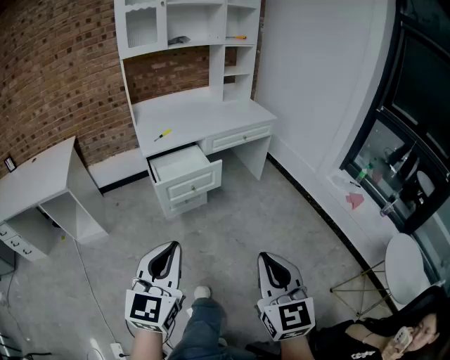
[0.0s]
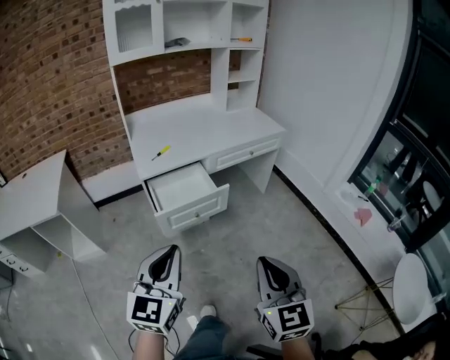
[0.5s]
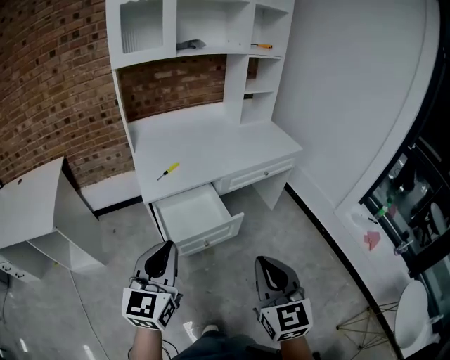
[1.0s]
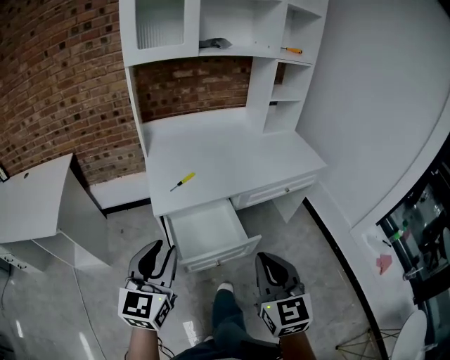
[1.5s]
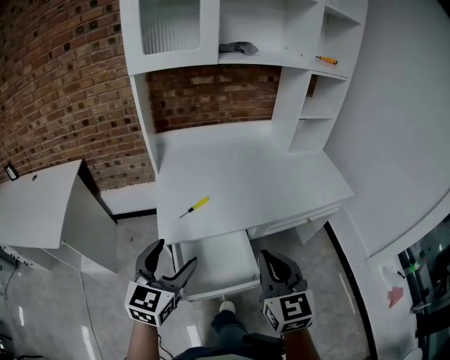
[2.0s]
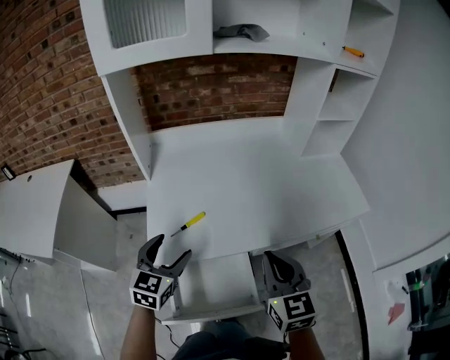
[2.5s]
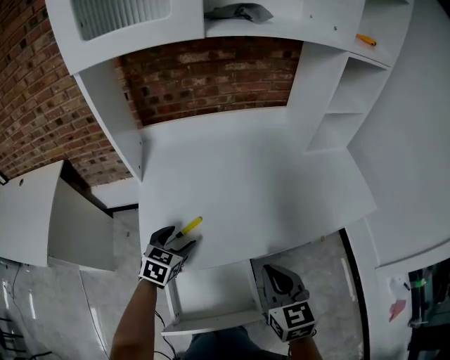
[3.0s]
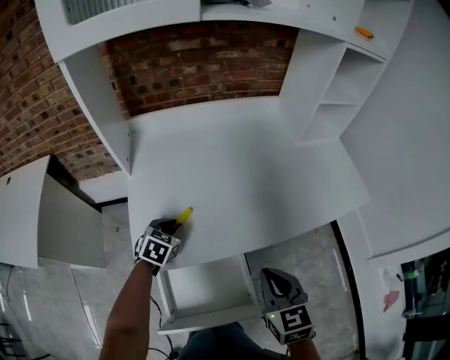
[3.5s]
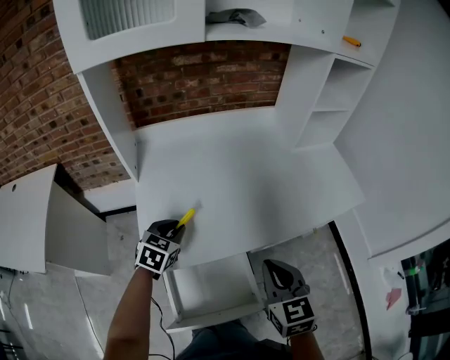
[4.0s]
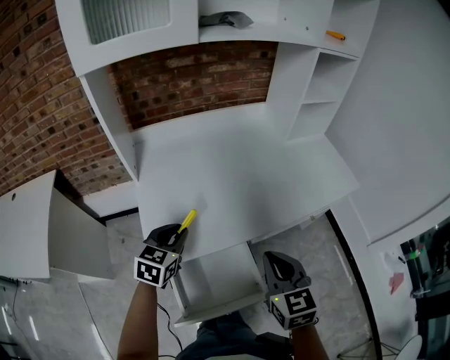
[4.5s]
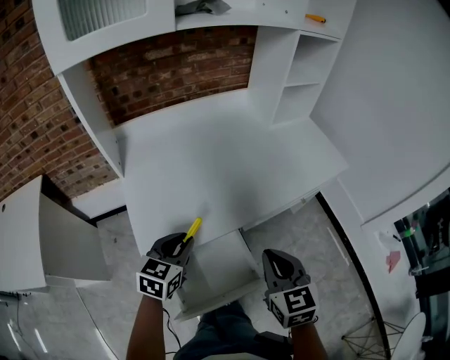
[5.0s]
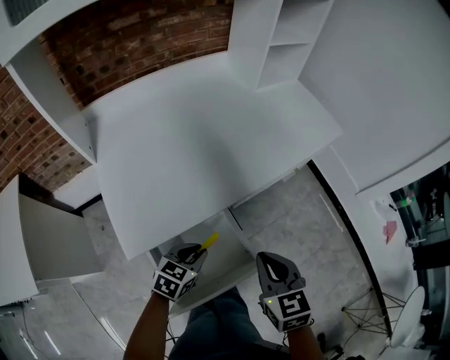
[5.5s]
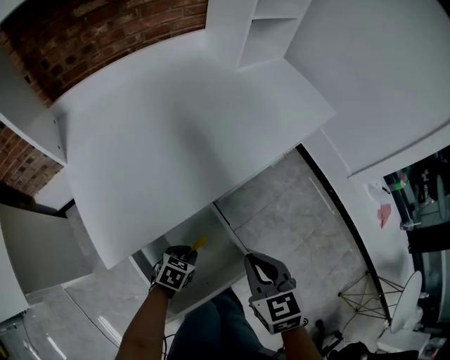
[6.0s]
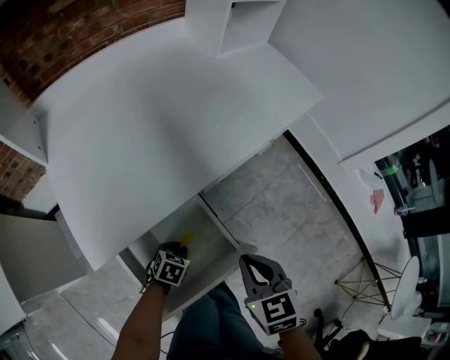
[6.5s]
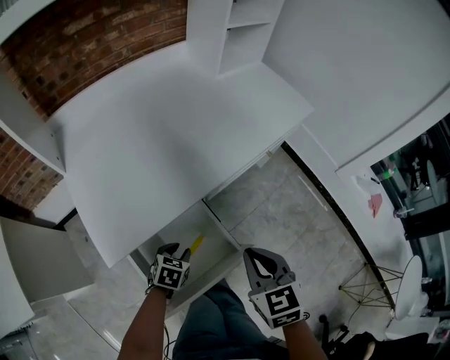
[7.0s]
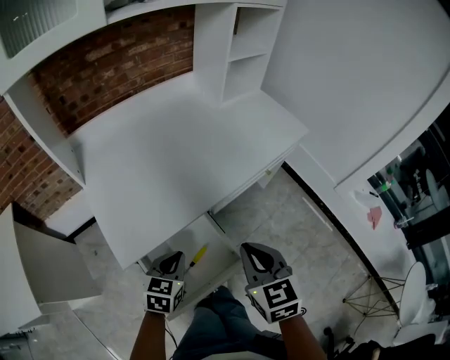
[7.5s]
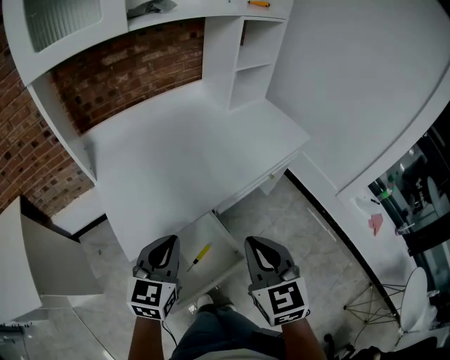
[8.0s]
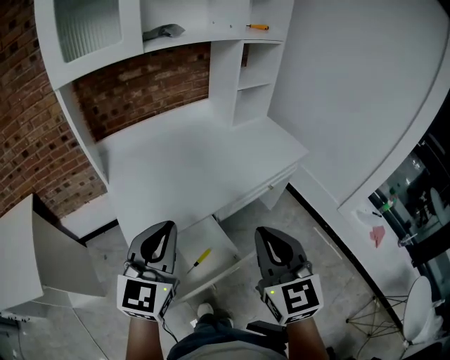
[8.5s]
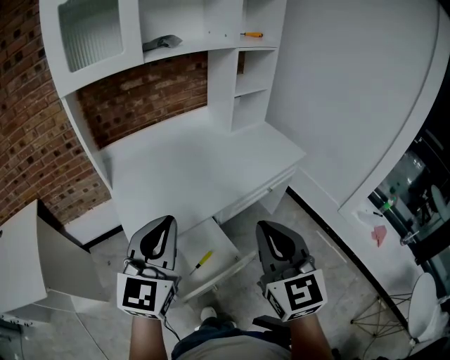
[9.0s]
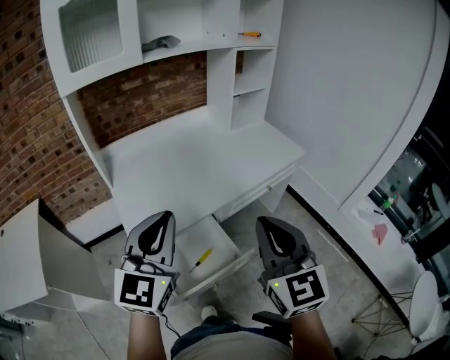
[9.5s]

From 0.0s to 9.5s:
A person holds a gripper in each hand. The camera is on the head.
From 0.0s to 2.0s: The two grippers travel together, forward, about 60 cm. The left gripper opens up.
From 2.0s to 4.0s: The right gripper heads forward and downward, covering approximately 15 cm, while the left gripper travels forward and downward by some 30 cm, rotates some 30 degrees, and closes its fingers.
From 4.0s to 5.5s: The left gripper goes some 25 cm to the right, backward and downward, and rotates roughly 30 degrees. The right gripper heads backward and downward, covering roughly 10 cm.
From 5.5s to 7.5s: The left gripper reaches roughly 20 cm downward, then returns. The right gripper heads upward, covering about 5 cm.
From 7.5s to 9.5s: The left gripper shifts some 30 cm upward, and angles its fingers upward, by some 40 degrees; the right gripper moves upward and backward, some 20 cm, and turns by roughly 30 degrees.

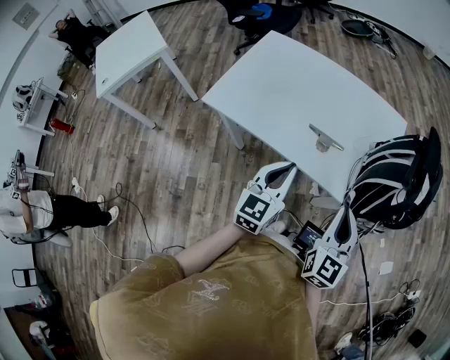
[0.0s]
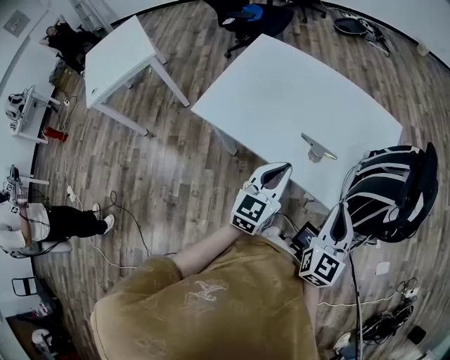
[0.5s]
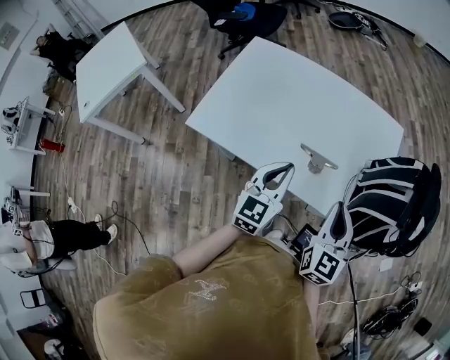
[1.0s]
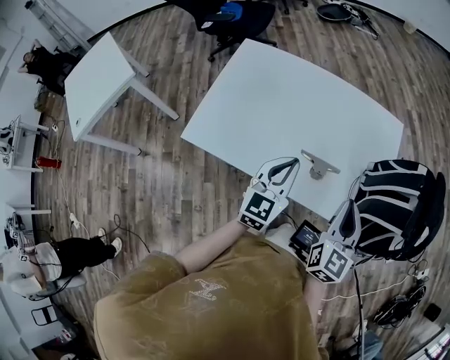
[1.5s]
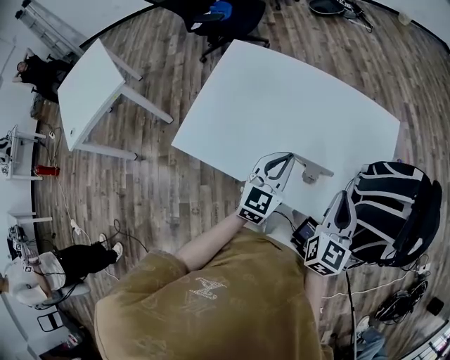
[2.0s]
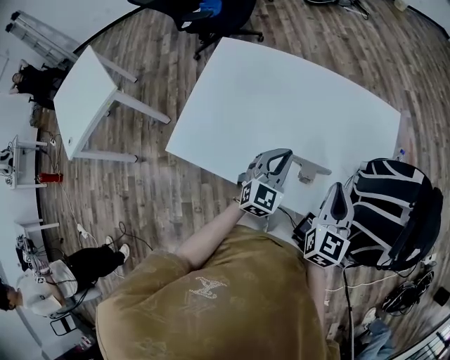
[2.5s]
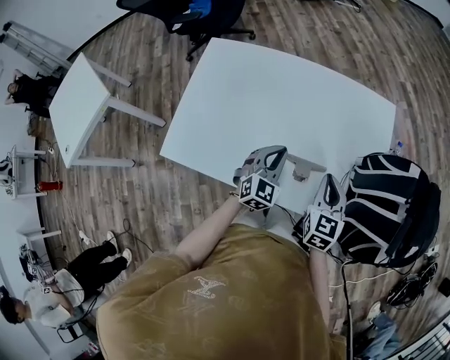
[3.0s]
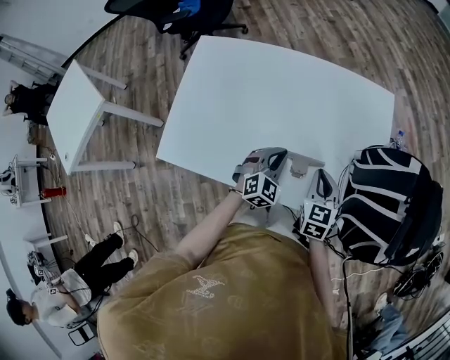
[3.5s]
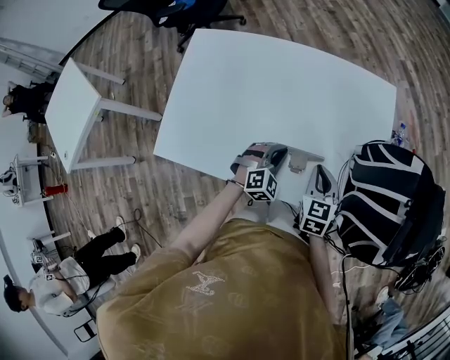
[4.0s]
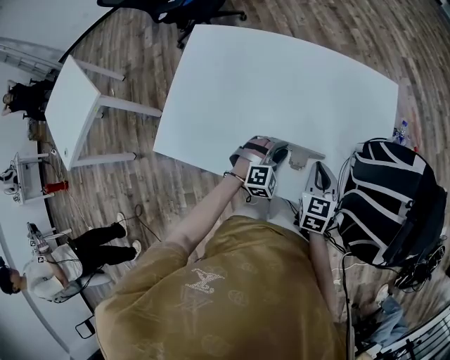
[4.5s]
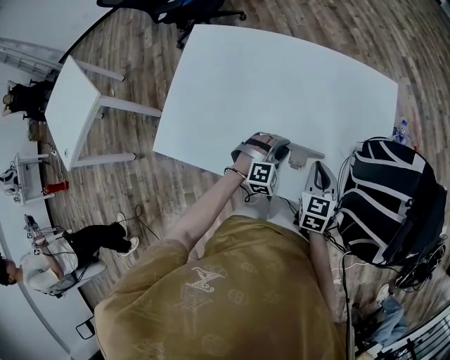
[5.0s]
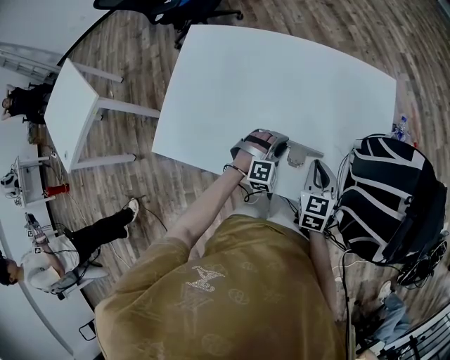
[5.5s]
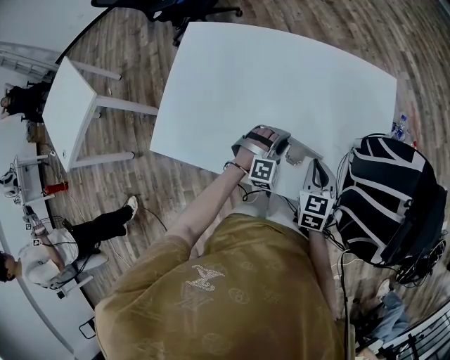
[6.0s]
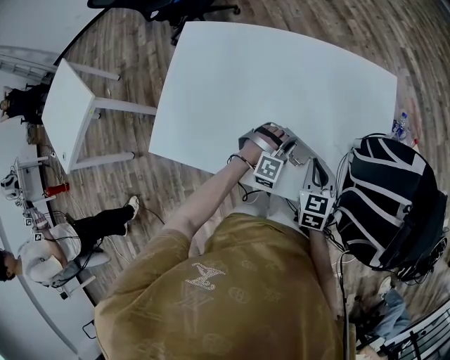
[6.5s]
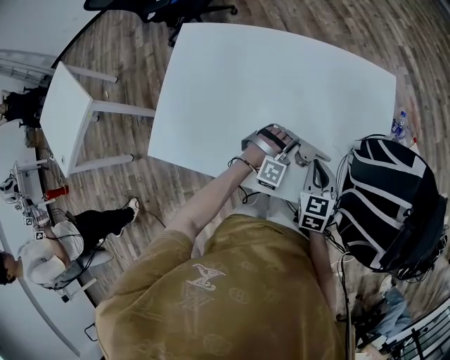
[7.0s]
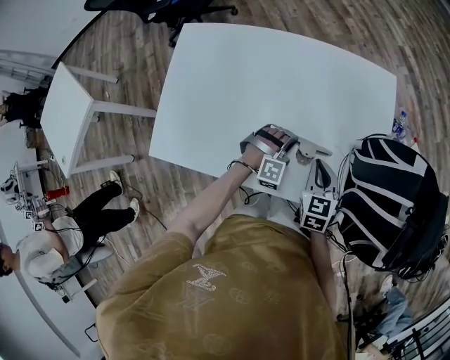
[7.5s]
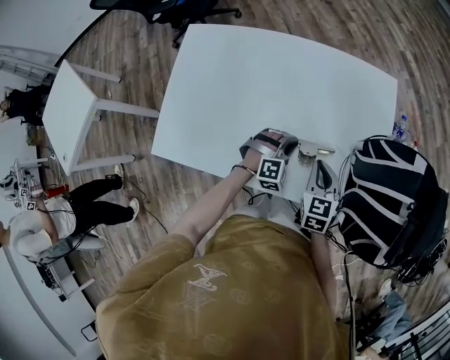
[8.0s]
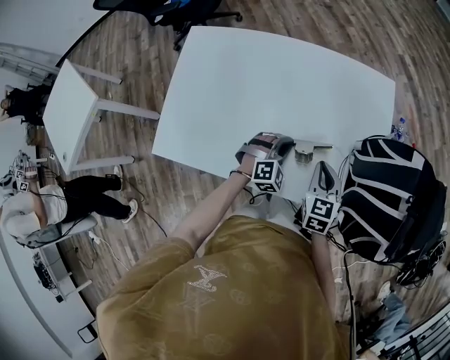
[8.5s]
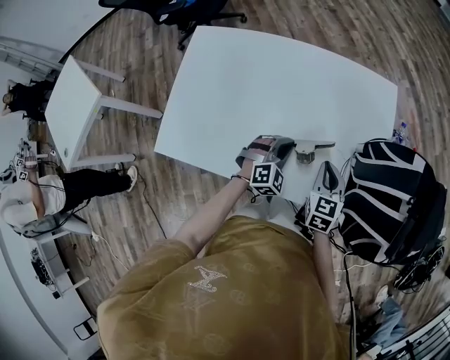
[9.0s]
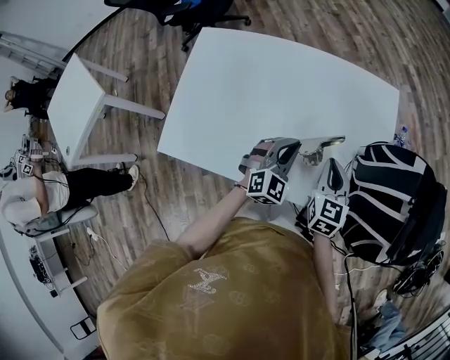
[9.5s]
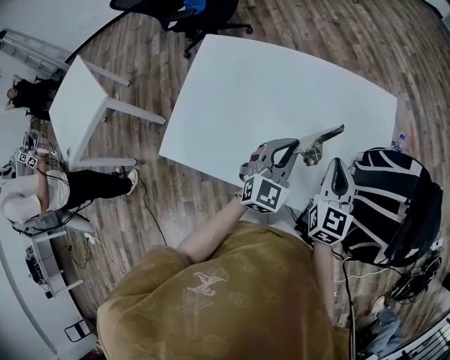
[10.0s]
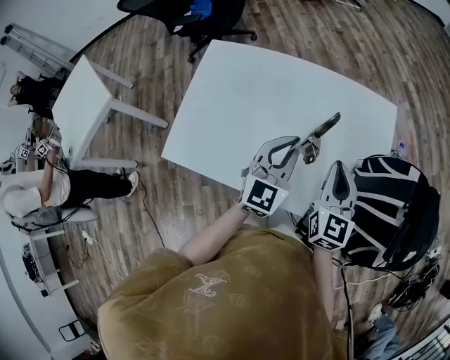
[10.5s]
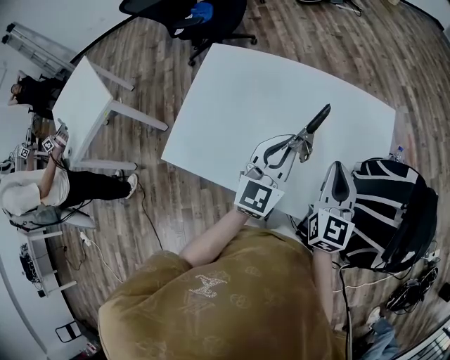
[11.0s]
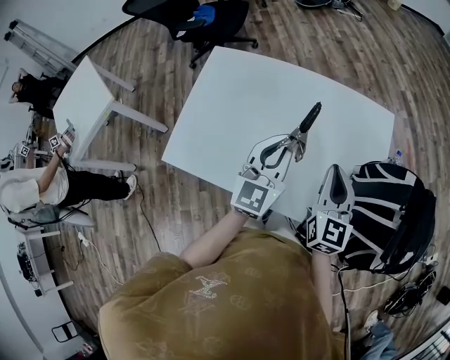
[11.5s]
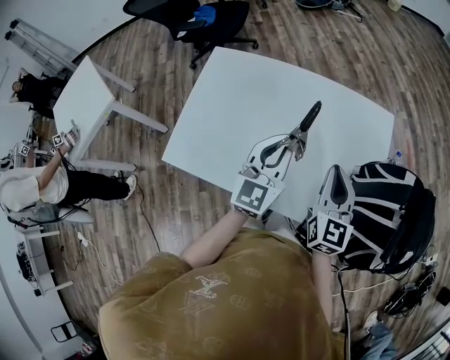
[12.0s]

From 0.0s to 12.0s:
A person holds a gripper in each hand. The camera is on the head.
From 0.0s to 2.0s: Both grippers travel together forward, roughly 20 cm.
From 2.0s to 4.0s: Both grippers travel together downward, some 20 cm. The right gripper rotates some 20 degrees. Meanwhile the left gripper changes its angle by about 50 degrees.
From 4.0s to 6.0s: The left gripper turns by roughly 20 degrees.
From 6.0s to 8.0s: The grippers make only small movements.
From 8.0s to 10.0s: The grippers both shift upward by approximately 15 cm. The left gripper swivels approximately 50 degrees. Meanwhile the right gripper swivels roughly 20 degrees.
From 10.0s to 12.0s: The left gripper travels upward by some 10 cm, and rotates some 30 degrees. The right gripper changes place by approximately 5 cm.

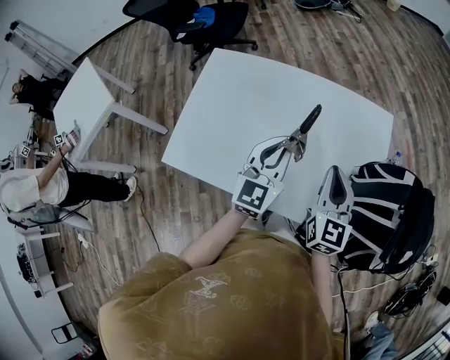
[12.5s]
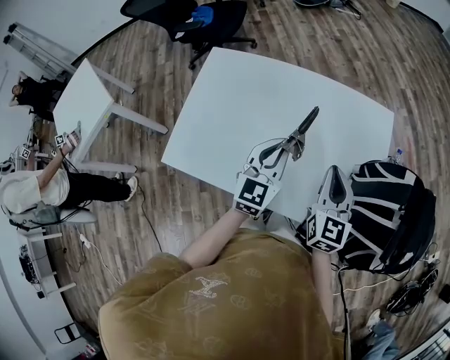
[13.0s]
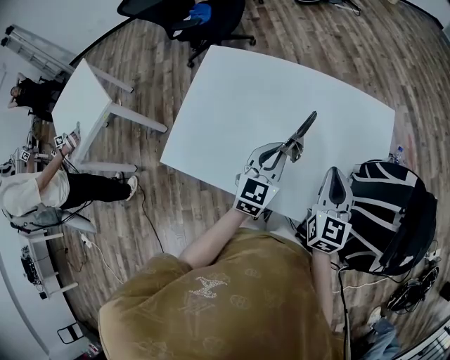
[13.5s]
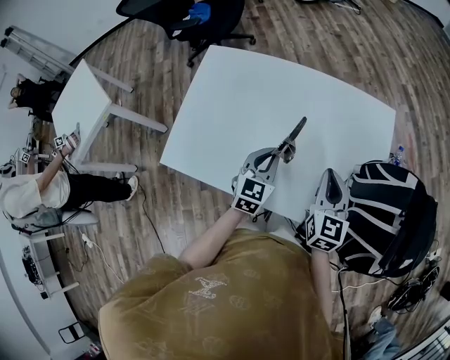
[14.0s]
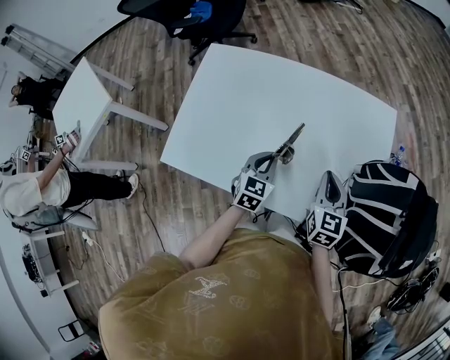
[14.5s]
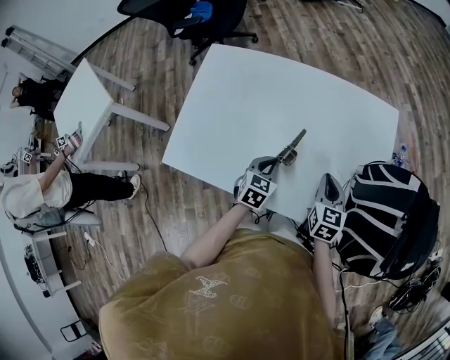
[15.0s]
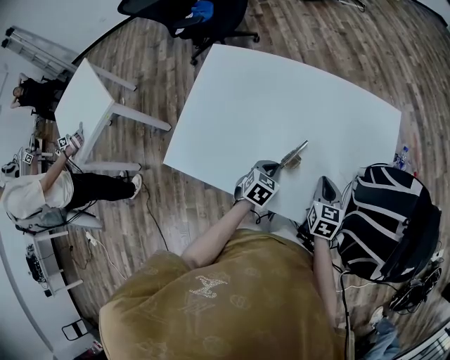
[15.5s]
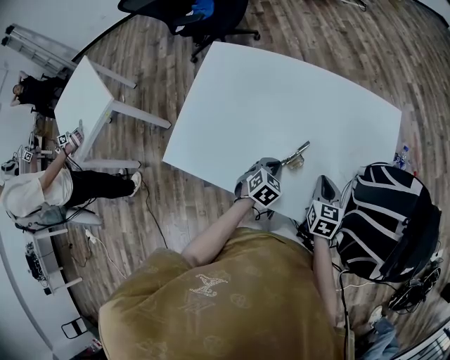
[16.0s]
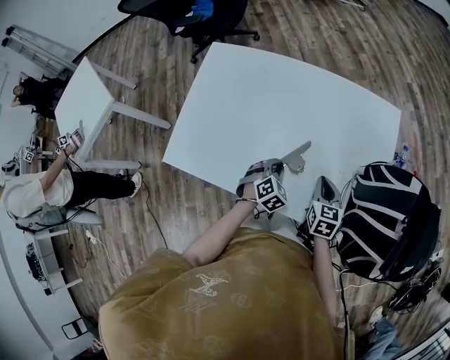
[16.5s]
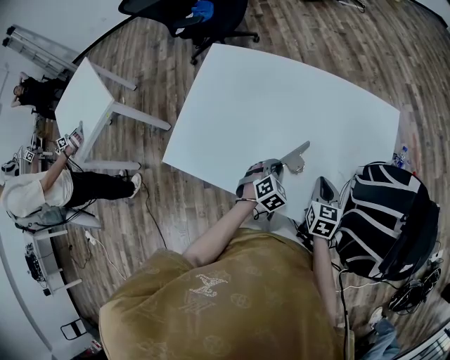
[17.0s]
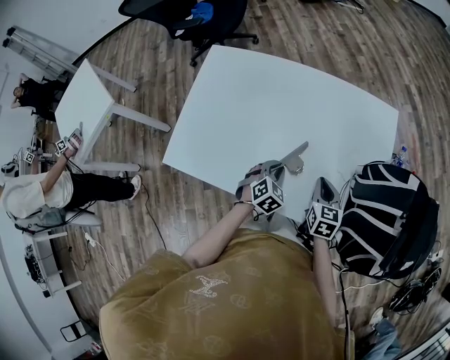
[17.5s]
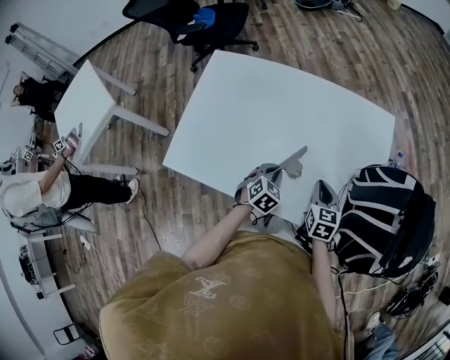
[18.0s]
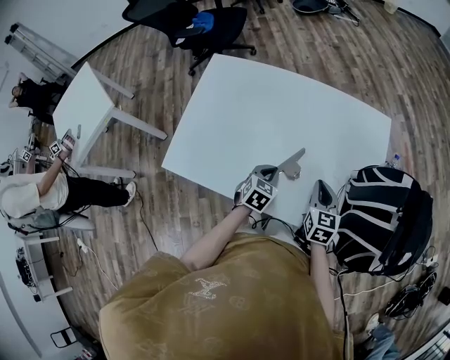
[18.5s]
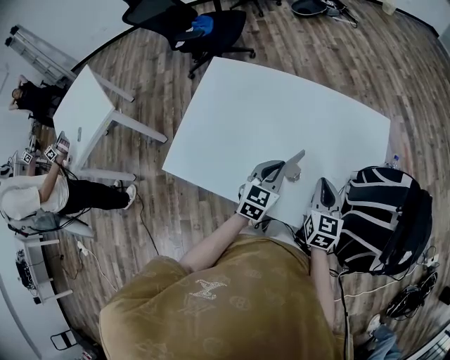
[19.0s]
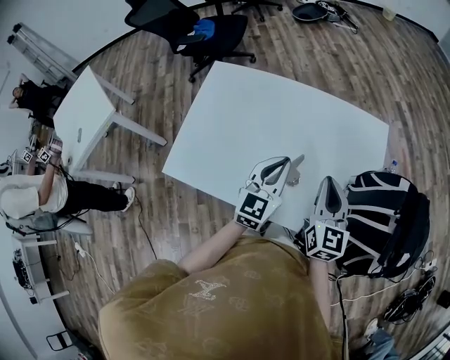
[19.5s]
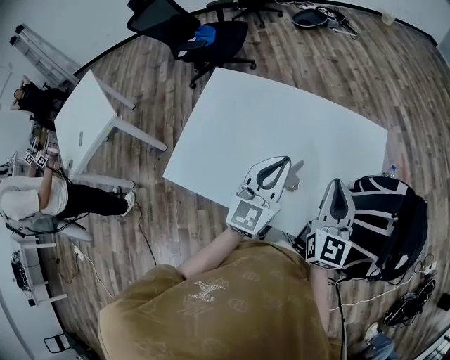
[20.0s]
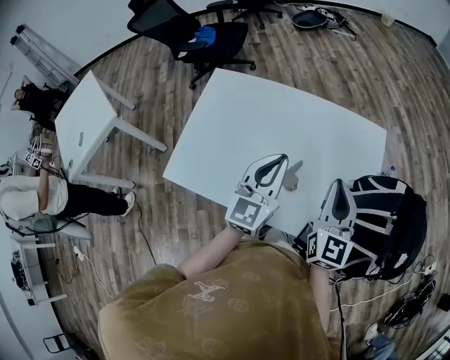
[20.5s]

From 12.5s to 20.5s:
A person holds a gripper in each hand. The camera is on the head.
From 12.5s to 14.5s: The right gripper shifts approximately 10 cm downward; the left gripper shifts about 20 cm downward, and changes its angle by roughly 30 degrees.
From 14.5s to 16.5s: The grippers both shift downward by approximately 10 cm. The left gripper turns by some 40 degrees.
From 16.5s to 18.5s: The left gripper rotates about 30 degrees.
From 18.5s to 20.5s: Both grippers move upward, about 25 cm. The left gripper tilts its fingers roughly 50 degrees upward. Meanwhile the right gripper changes its angle by about 30 degrees.
